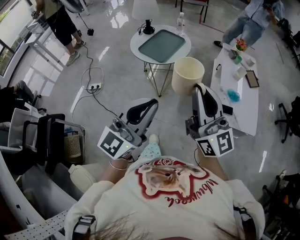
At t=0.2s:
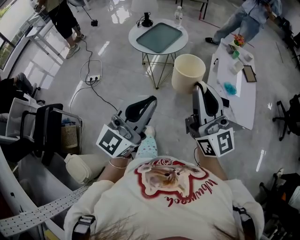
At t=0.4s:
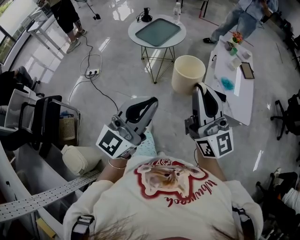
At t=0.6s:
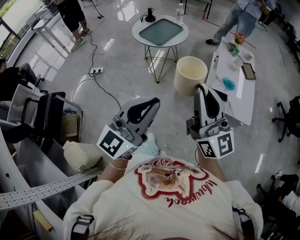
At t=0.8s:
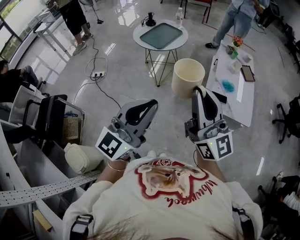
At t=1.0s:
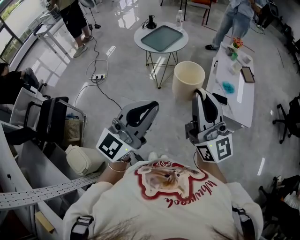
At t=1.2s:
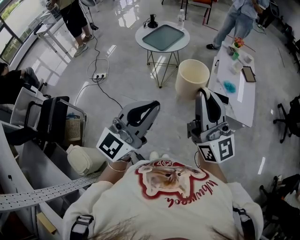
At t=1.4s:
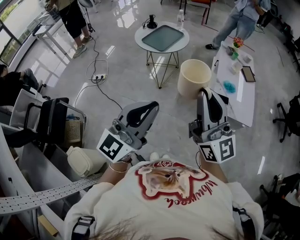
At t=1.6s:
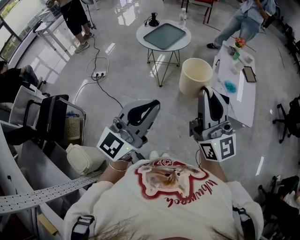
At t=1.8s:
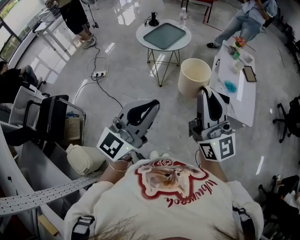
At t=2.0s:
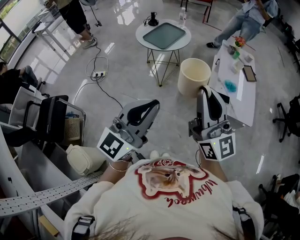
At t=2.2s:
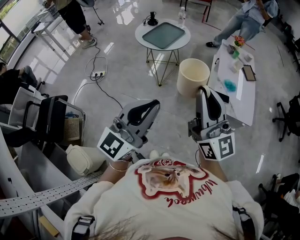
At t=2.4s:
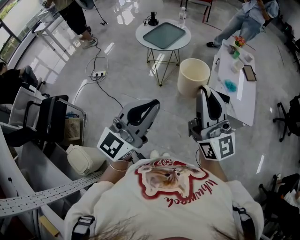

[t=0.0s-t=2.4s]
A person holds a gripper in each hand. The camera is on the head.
t=0.0s to t=1.2s: Both grippers travel together backward and to the right, roughly 15 cm.
t=1.2s to t=2.4s: The grippers make only small movements.

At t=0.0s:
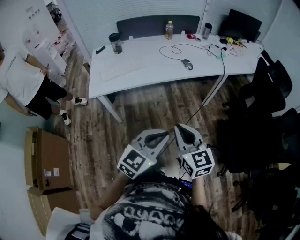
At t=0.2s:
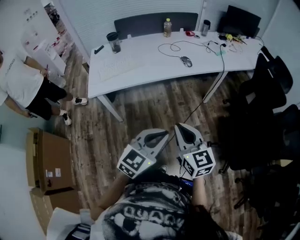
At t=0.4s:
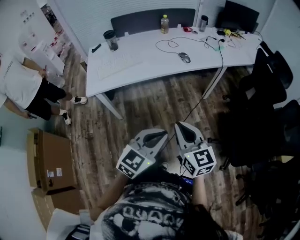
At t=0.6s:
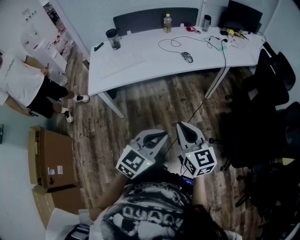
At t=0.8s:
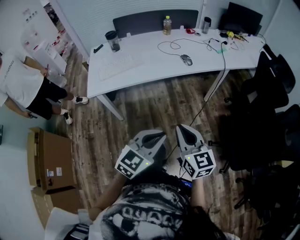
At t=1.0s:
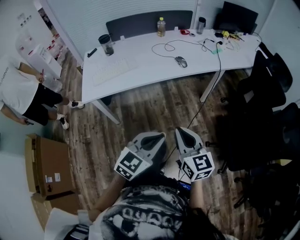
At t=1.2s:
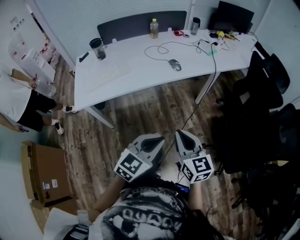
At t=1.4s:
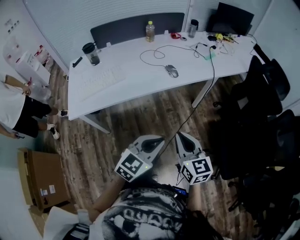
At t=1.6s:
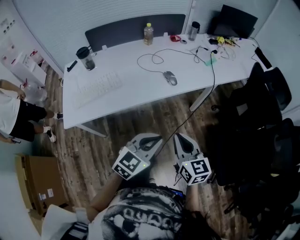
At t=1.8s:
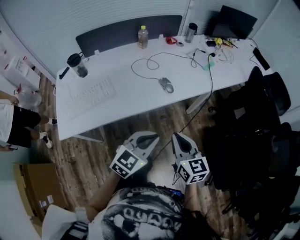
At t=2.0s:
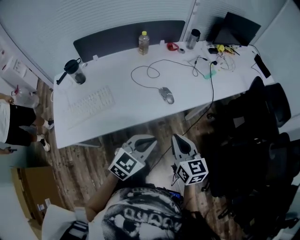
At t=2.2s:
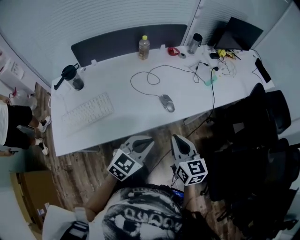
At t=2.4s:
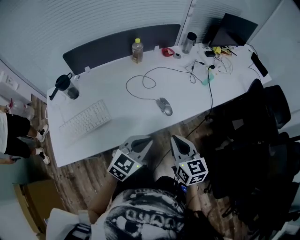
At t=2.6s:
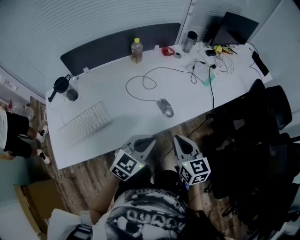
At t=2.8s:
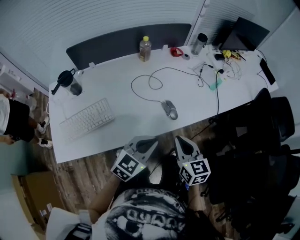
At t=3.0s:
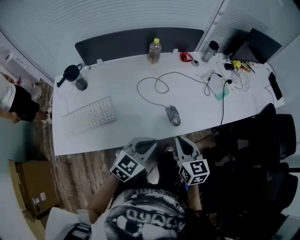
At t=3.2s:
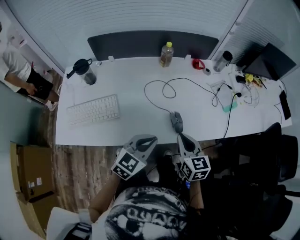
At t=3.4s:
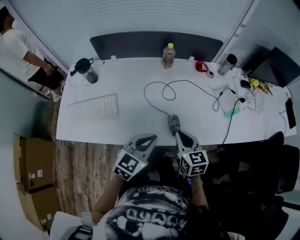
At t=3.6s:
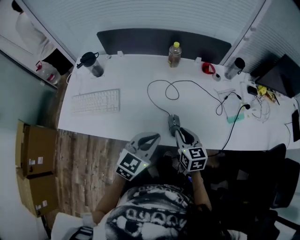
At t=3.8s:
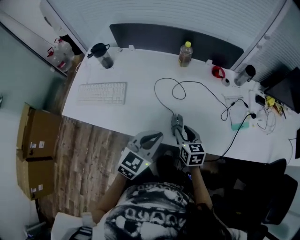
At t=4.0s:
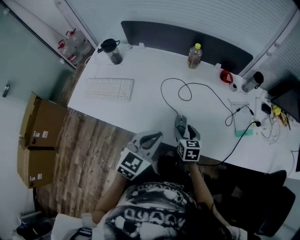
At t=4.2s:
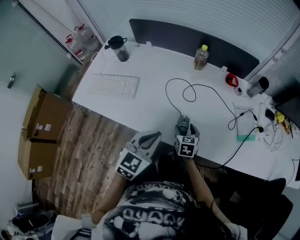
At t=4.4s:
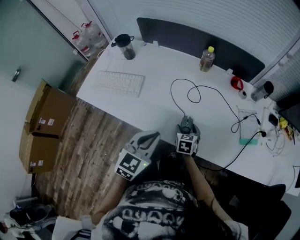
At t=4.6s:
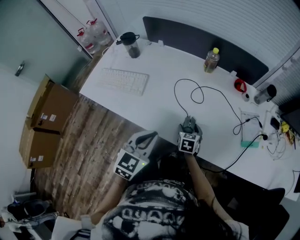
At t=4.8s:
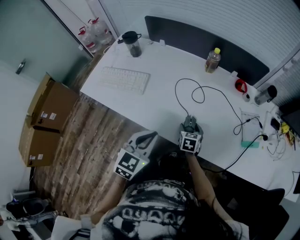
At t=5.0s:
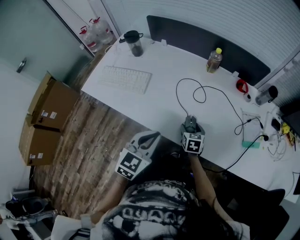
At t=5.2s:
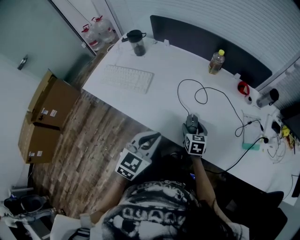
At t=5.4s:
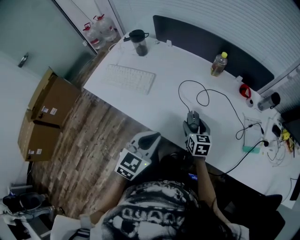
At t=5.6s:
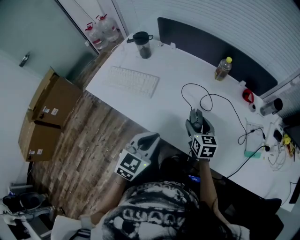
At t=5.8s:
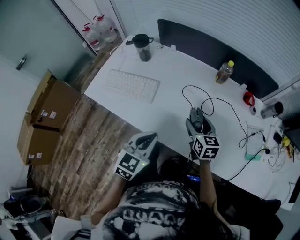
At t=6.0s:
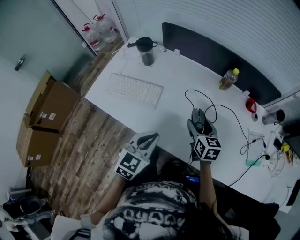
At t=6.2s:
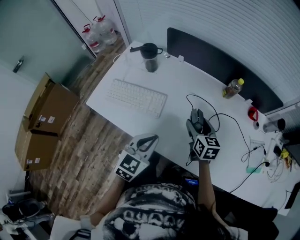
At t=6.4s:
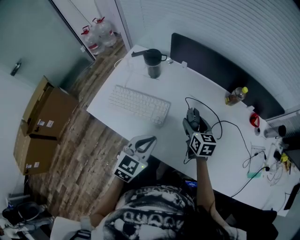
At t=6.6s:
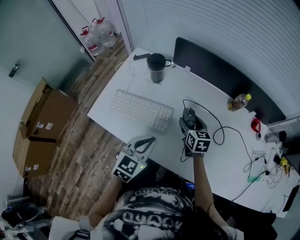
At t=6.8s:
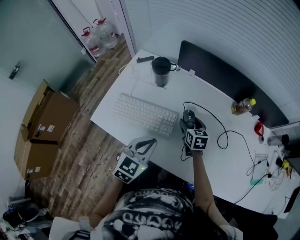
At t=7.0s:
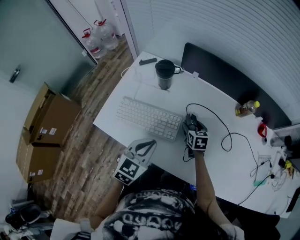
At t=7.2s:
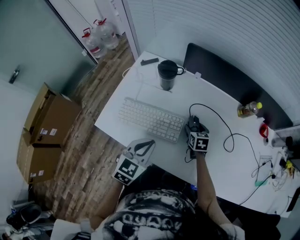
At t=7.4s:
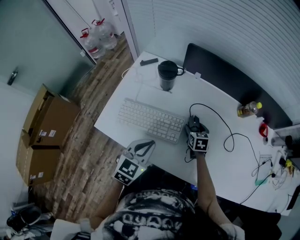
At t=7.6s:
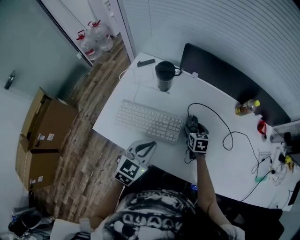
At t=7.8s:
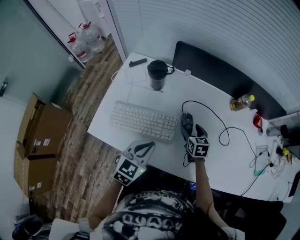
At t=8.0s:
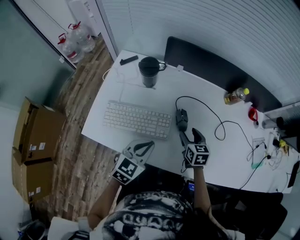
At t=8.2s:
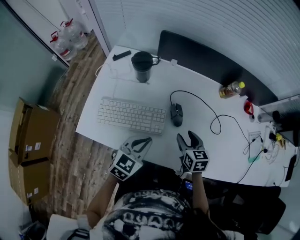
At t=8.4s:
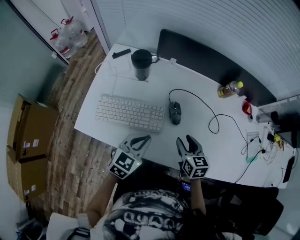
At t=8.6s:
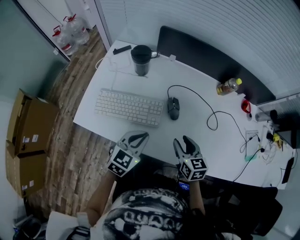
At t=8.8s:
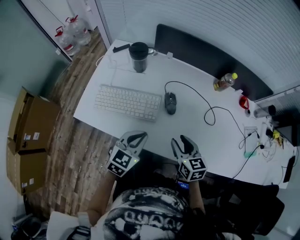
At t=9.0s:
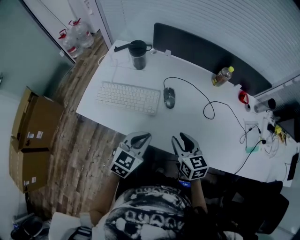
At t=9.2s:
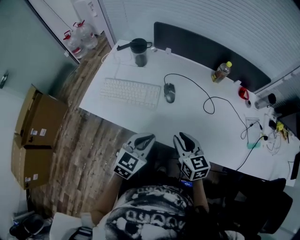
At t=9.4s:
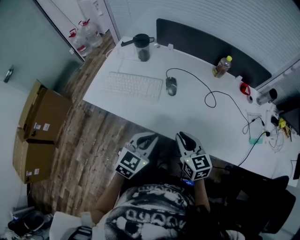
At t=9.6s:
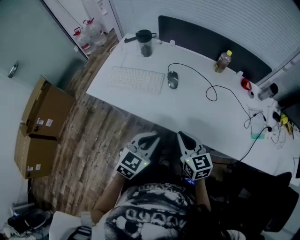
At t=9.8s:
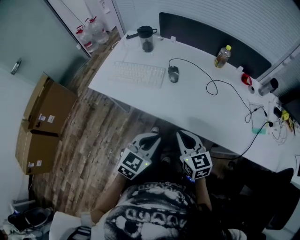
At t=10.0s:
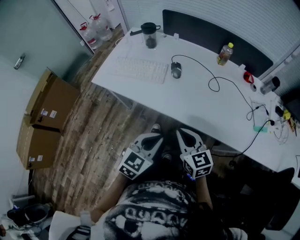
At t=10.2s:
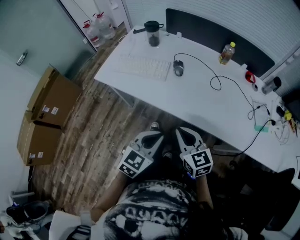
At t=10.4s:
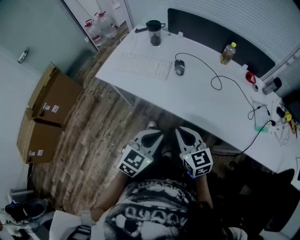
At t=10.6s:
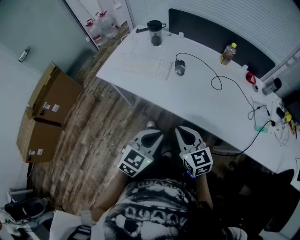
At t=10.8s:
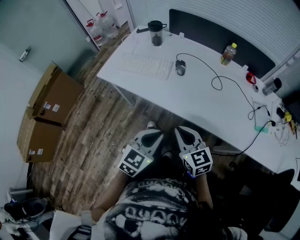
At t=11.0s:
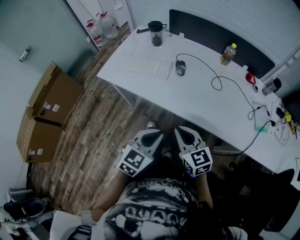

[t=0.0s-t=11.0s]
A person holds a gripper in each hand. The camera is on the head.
t=0.0s to t=1.6s: The two grippers go some 20 cm forward.
t=1.6s to t=3.2s: The grippers both shift forward by some 30 cm.
t=3.2s to t=4.8s: The left gripper turns by roughly 40 degrees. Meanwhile the right gripper goes some 20 cm downward, changes its angle by roughly 30 degrees, and opens its fingers.
t=4.8s to t=6.2s: The left gripper travels to the left and forward by roughly 15 cm. The right gripper is displaced upward, forward and to the left by some 25 cm, and changes its angle by about 20 degrees.
t=6.2s to t=7.8s: The right gripper heads to the left, downward and forward, covering roughly 15 cm; the left gripper shifts about 15 cm to the left and forward.
t=7.8s to t=9.4s: The left gripper moves backward and to the right, about 20 cm. Meanwhile the right gripper shifts some 30 cm backward and upward, swivels approximately 20 degrees, and closes up.
t=9.4s to t=11.0s: Both grippers travel together backward, some 15 cm.

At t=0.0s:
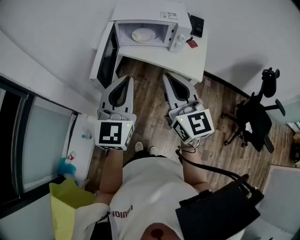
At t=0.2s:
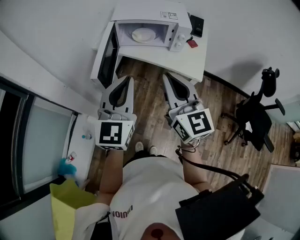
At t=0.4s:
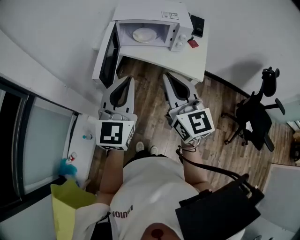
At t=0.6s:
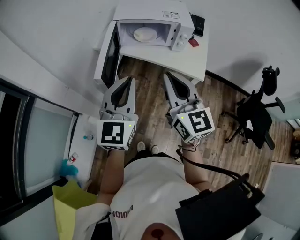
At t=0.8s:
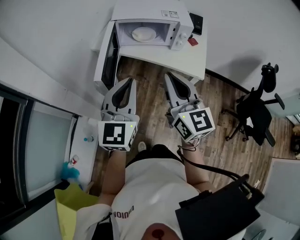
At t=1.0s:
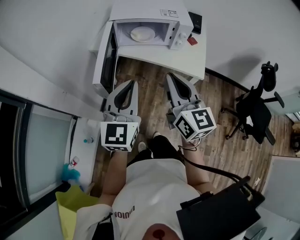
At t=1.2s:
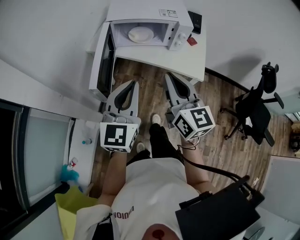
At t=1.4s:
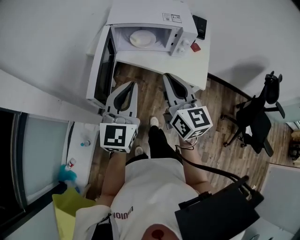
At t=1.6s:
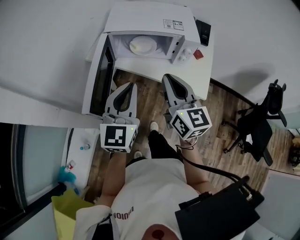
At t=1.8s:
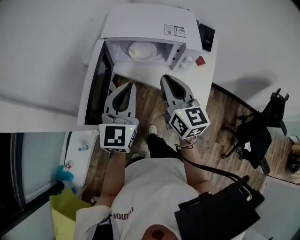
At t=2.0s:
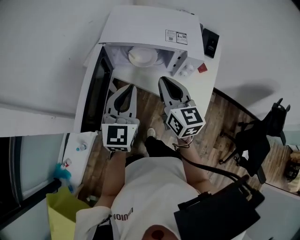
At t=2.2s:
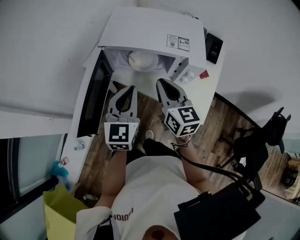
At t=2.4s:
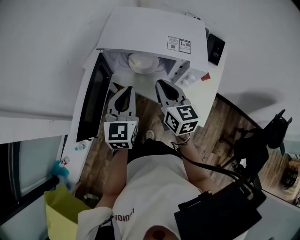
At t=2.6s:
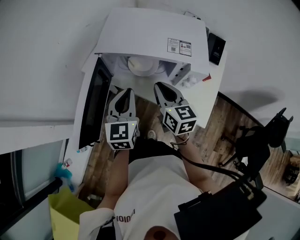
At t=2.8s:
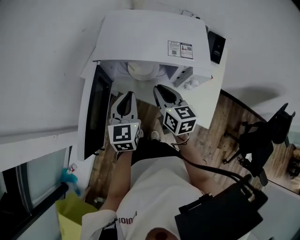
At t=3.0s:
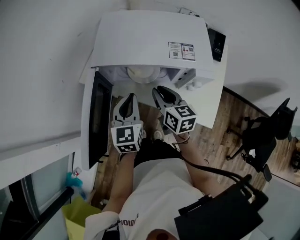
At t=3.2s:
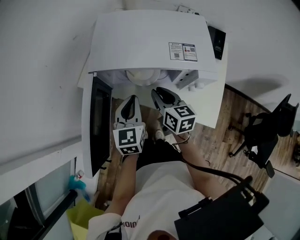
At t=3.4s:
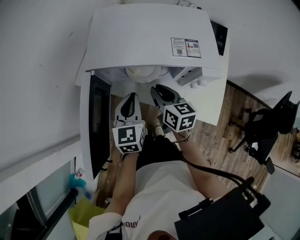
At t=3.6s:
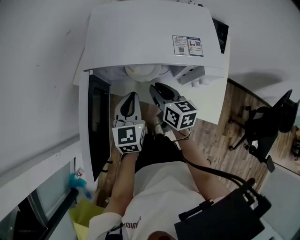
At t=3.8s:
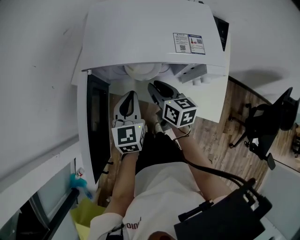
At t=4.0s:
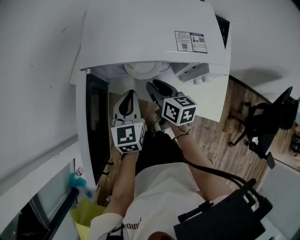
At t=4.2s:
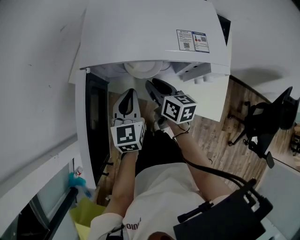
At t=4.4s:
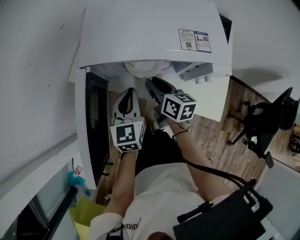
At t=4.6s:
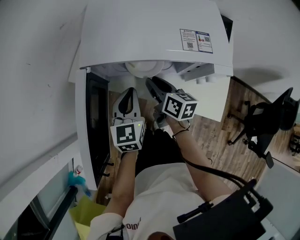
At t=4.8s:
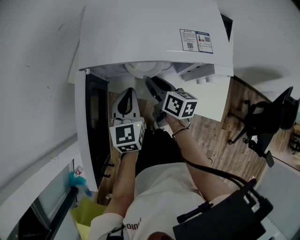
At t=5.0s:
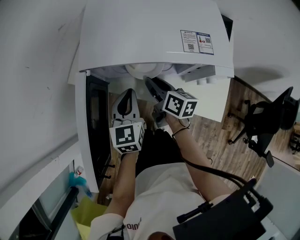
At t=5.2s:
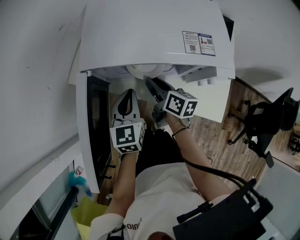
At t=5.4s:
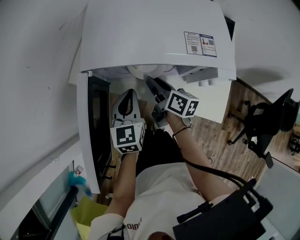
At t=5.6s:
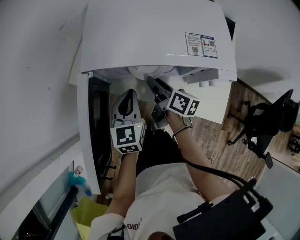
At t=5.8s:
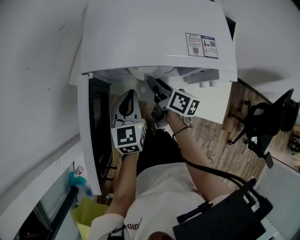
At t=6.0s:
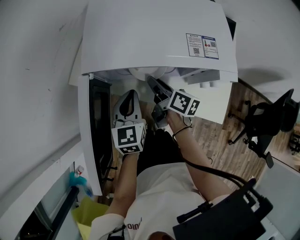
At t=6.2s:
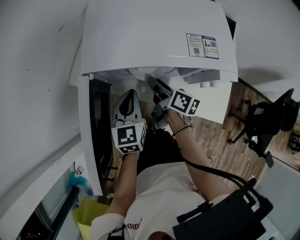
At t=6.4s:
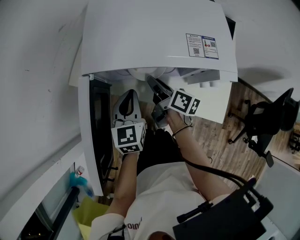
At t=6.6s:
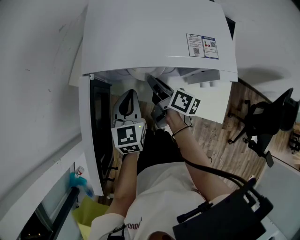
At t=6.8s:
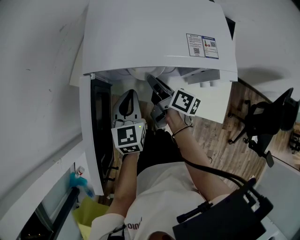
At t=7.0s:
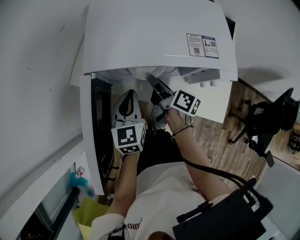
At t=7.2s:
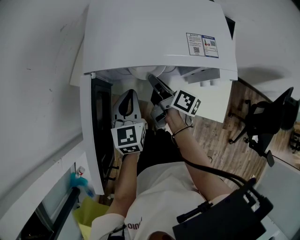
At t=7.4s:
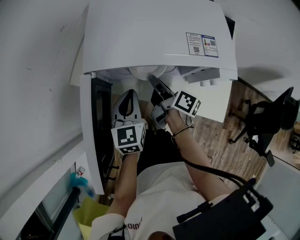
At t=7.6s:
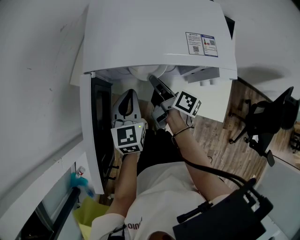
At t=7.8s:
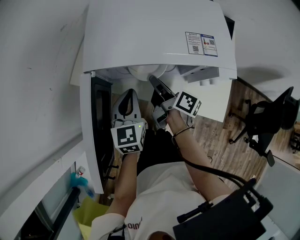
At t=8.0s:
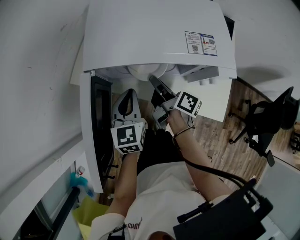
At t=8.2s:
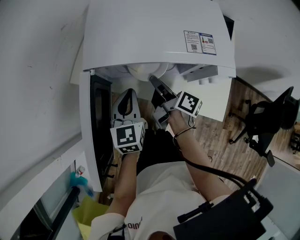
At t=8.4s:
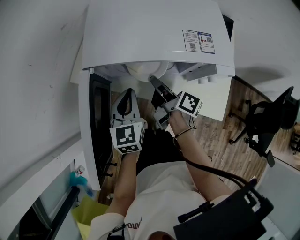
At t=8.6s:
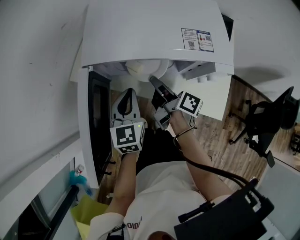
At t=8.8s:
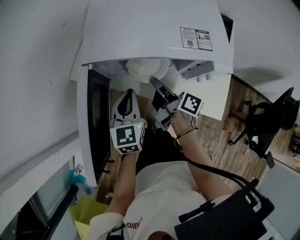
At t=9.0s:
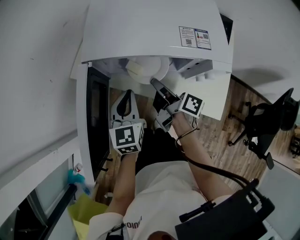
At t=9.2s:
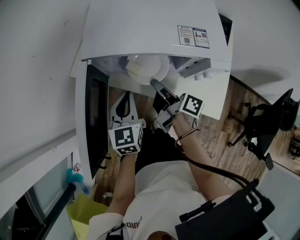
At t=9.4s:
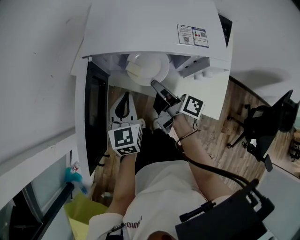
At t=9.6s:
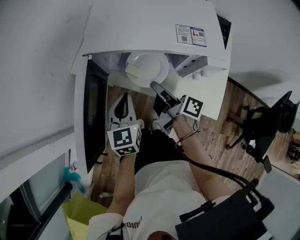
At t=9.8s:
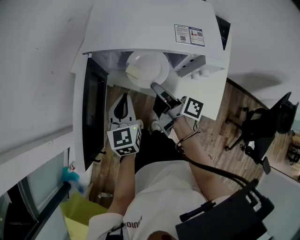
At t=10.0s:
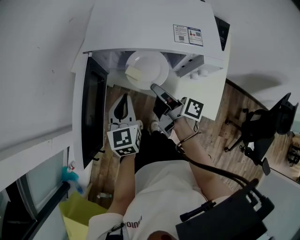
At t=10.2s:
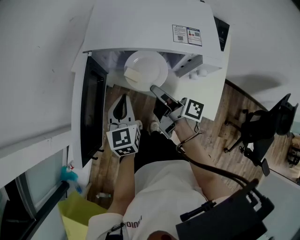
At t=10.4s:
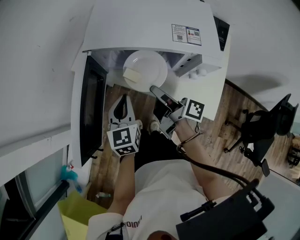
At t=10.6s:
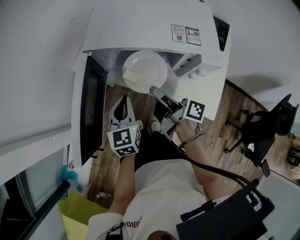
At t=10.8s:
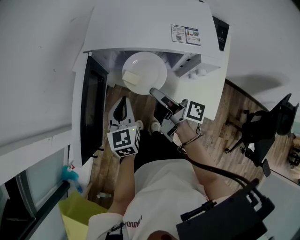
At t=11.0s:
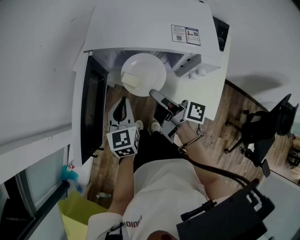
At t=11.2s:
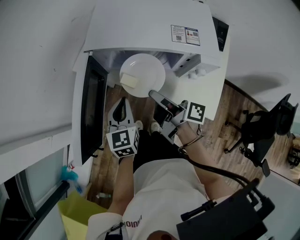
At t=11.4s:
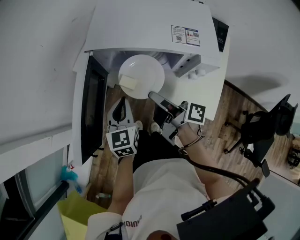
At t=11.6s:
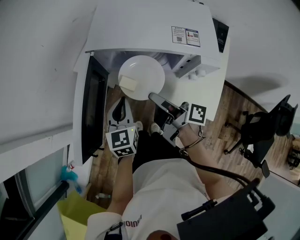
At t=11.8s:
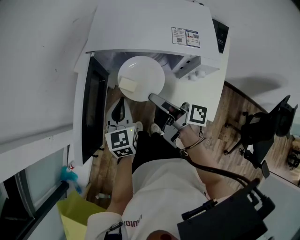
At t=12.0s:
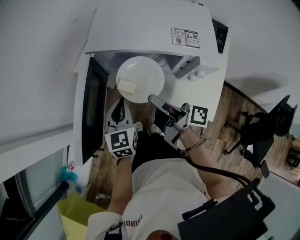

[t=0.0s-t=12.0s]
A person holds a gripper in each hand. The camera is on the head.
t=0.0s to t=1.6s: The grippers both shift forward and downward by roughly 15 cm.
t=1.6s to t=3.0s: Both grippers travel together forward and downward, about 25 cm. The left gripper swivels roughly 20 degrees, while the right gripper rotates roughly 30 degrees.
t=3.0s to t=4.4s: The grippers both shift downward by about 5 cm.
t=4.4s to t=6.0s: The right gripper rotates approximately 20 degrees.
t=6.0s to t=7.6s: The right gripper closes up.
t=7.6s to t=9.0s: The right gripper shifts by roughly 5 cm.
t=9.0s to t=10.4s: The right gripper heads backward, covering approximately 5 cm.
t=10.4s to t=12.0s: The right gripper moves roughly 5 cm.
